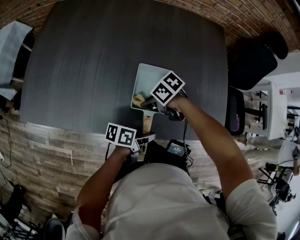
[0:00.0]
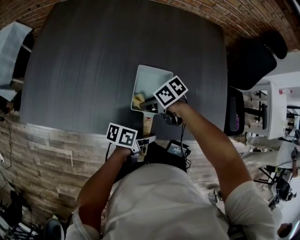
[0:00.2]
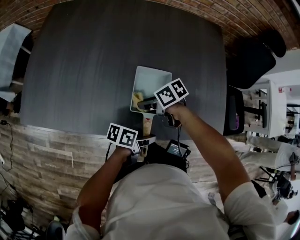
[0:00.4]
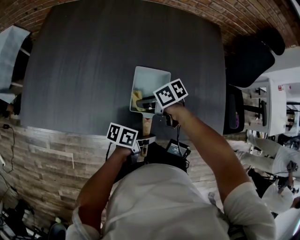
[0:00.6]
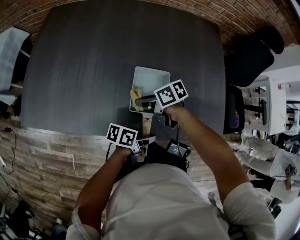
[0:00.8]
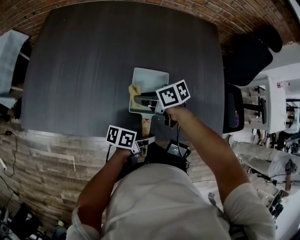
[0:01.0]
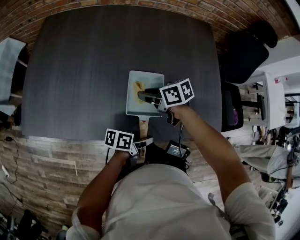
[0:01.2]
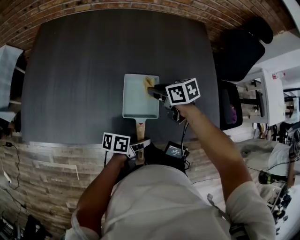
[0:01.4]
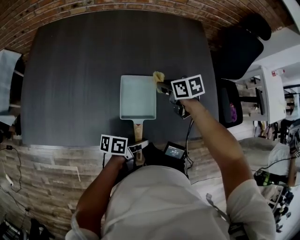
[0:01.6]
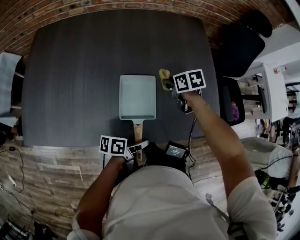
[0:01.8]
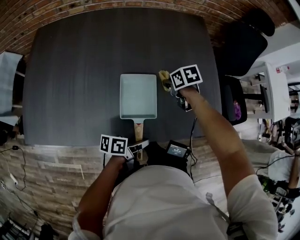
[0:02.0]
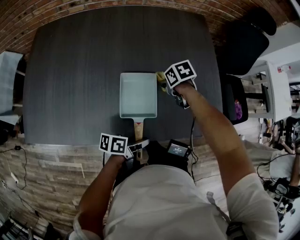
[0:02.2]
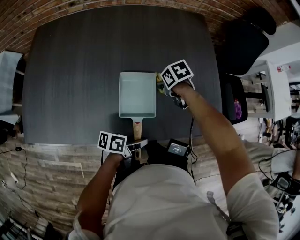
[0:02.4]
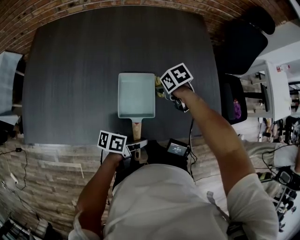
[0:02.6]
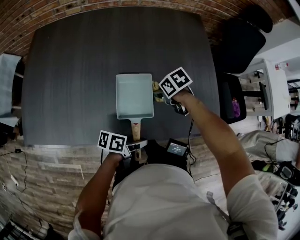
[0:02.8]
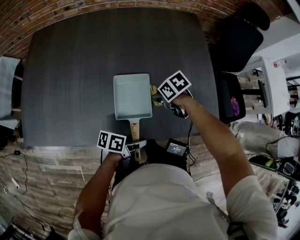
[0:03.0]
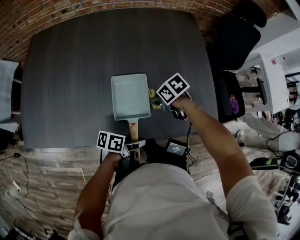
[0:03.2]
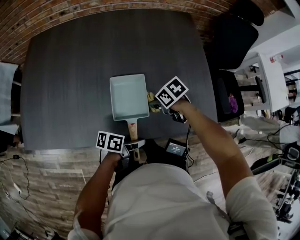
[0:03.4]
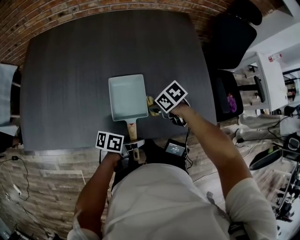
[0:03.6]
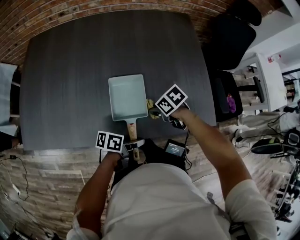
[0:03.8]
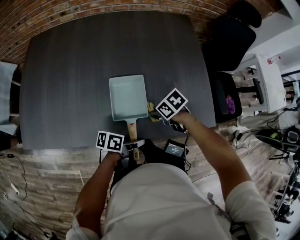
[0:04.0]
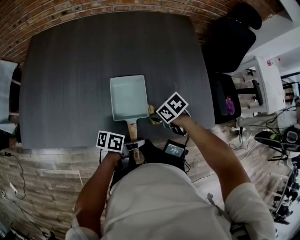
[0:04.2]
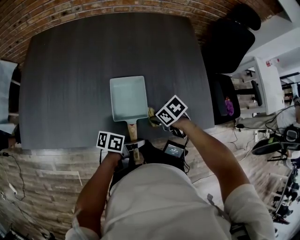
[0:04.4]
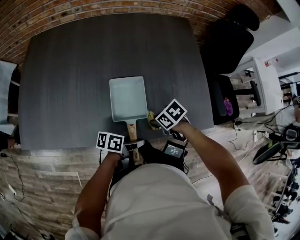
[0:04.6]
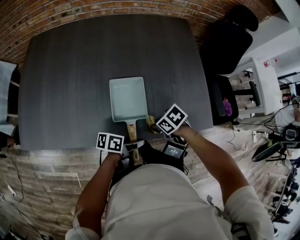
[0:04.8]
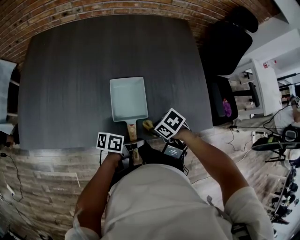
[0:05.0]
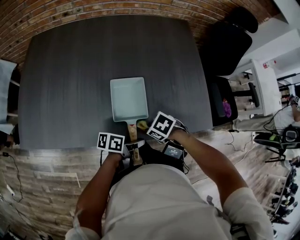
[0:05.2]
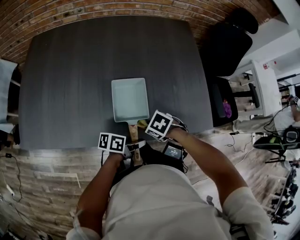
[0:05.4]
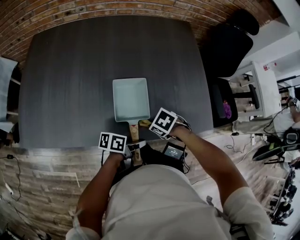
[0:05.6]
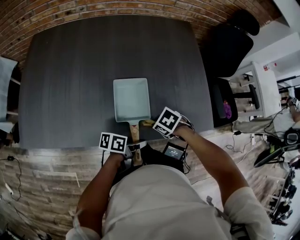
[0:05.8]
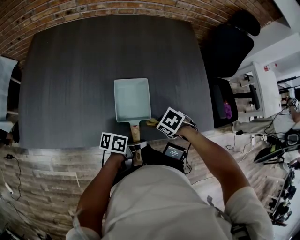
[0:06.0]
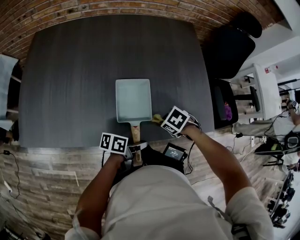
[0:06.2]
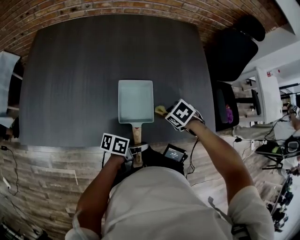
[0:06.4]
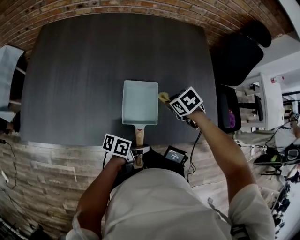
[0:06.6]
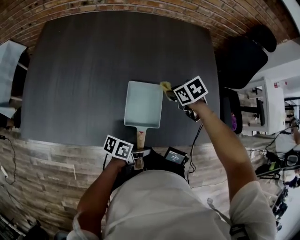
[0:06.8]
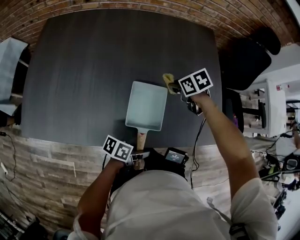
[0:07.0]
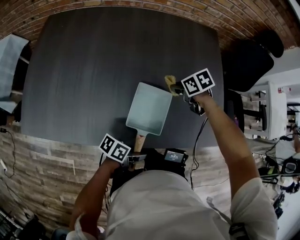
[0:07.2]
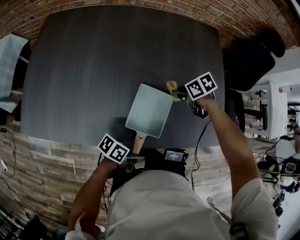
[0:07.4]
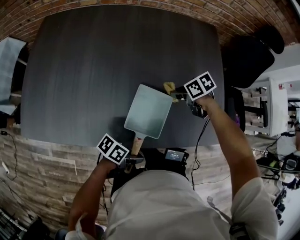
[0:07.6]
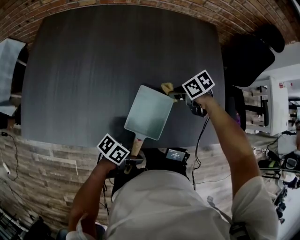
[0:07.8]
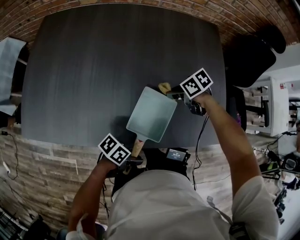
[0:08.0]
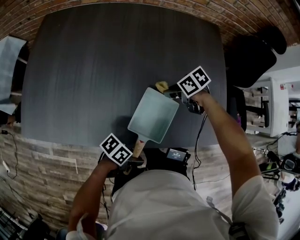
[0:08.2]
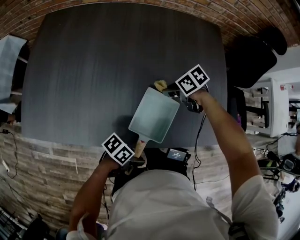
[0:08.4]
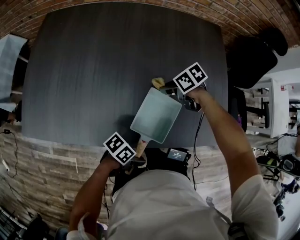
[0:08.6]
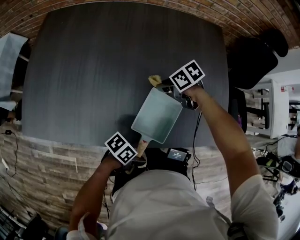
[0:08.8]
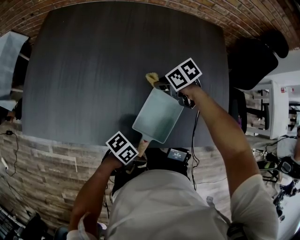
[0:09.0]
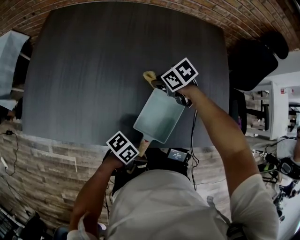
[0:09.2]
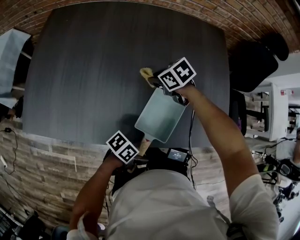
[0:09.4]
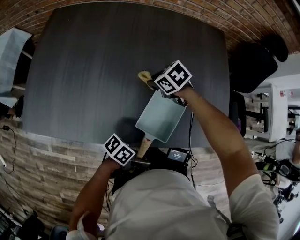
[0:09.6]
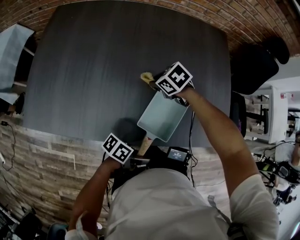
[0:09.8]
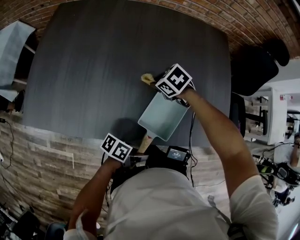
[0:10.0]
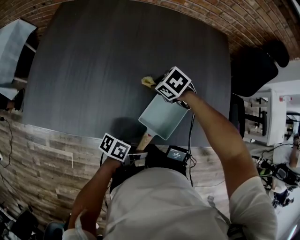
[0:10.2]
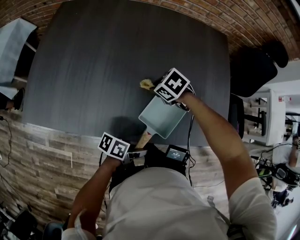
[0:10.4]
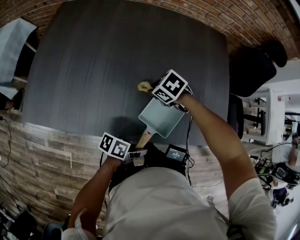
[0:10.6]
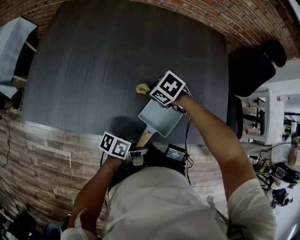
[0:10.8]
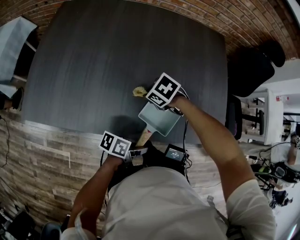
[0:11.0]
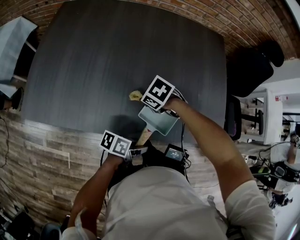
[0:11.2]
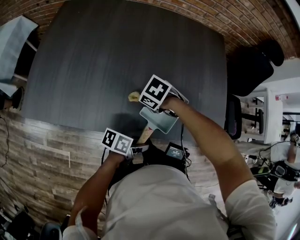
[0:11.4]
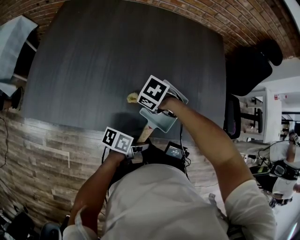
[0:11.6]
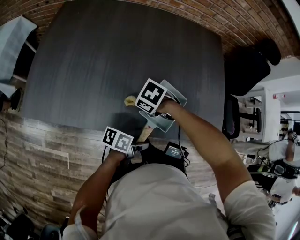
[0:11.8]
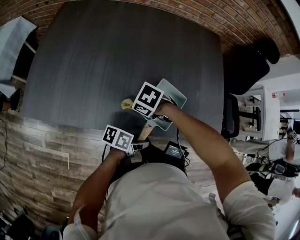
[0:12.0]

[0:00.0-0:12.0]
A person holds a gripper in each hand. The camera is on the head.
0.0 to 1.6 s: The right gripper moves about 20 cm, and rotates about 40 degrees.
1.6 to 3.0 s: The right gripper shifts by approximately 10 cm, and changes its angle by about 20 degrees.
3.0 to 4.4 s: The right gripper shifts by about 10 cm.
4.4 to 6.0 s: The right gripper changes its angle by about 20 degrees.
6.0 to 7.6 s: The right gripper moves roughly 20 cm, and swivels approximately 30 degrees.
7.6 to 9.0 s: The right gripper ends up roughly 10 cm from where it was.
9.0 to 10.4 s: The right gripper moves approximately 5 cm, and turns by about 30 degrees.
10.4 to 12.0 s: The right gripper ends up approximately 15 cm from where it was.

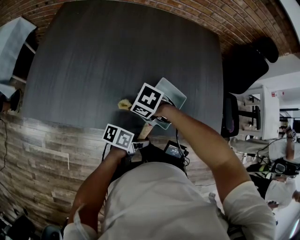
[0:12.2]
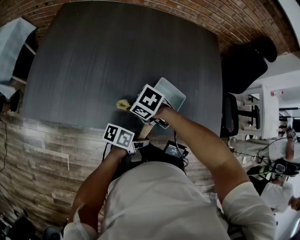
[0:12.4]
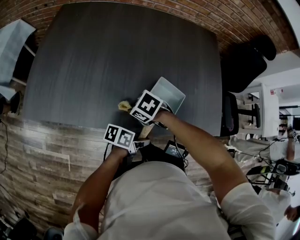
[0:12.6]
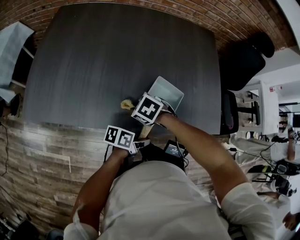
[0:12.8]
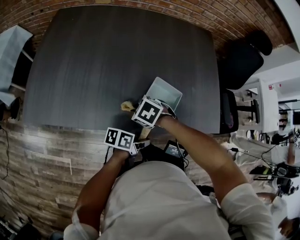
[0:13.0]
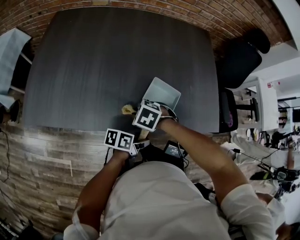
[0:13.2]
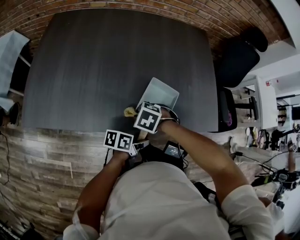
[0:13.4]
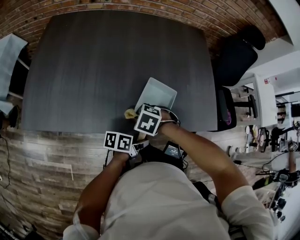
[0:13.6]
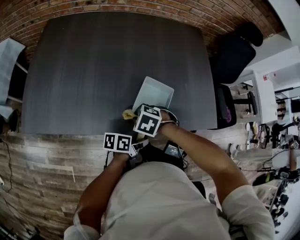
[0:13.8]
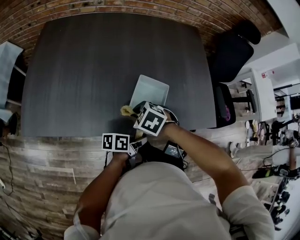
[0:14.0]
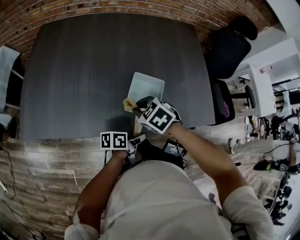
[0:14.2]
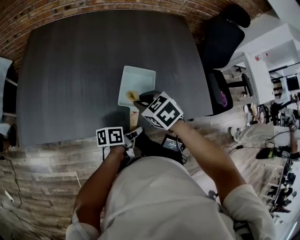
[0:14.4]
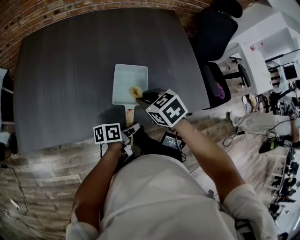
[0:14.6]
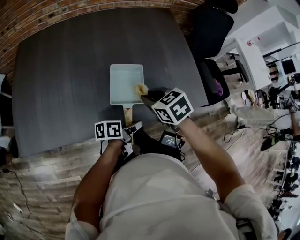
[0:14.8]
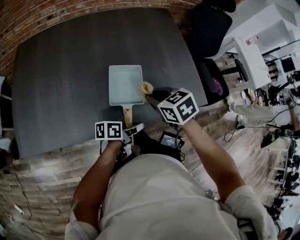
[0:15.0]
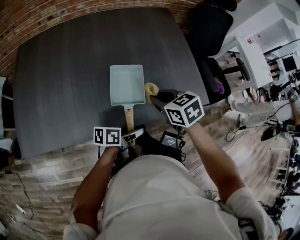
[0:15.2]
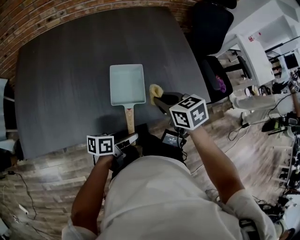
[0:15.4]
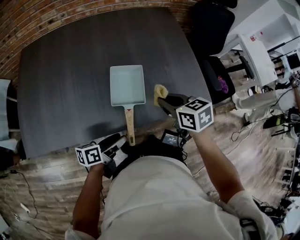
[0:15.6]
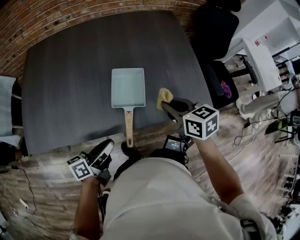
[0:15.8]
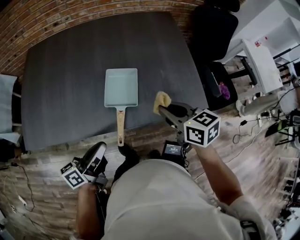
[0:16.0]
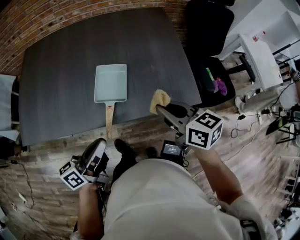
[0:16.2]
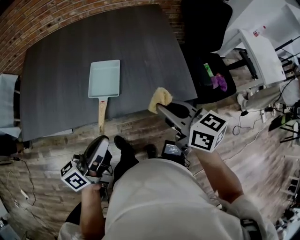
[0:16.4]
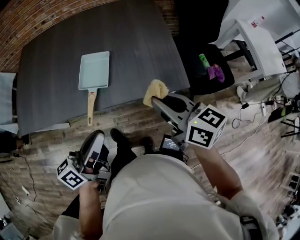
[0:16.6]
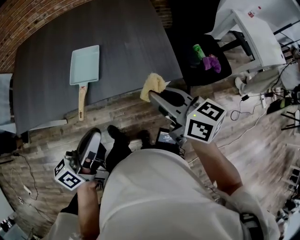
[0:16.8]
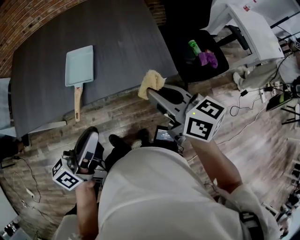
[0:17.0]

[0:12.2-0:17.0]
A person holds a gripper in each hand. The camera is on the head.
12.2 to 13.8 s: The right gripper shifts by approximately 5 cm.
13.8 to 15.4 s: The right gripper moves approximately 20 cm, and rolls clockwise, seen from behind, by about 50 degrees.
15.4 to 17.0 s: The right gripper moves roughly 25 cm, and angles its fingers upward, by roughly 30 degrees.

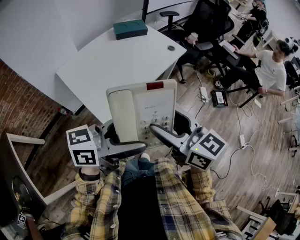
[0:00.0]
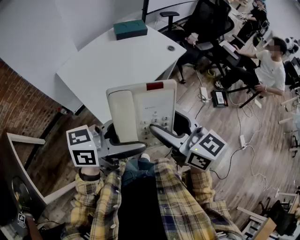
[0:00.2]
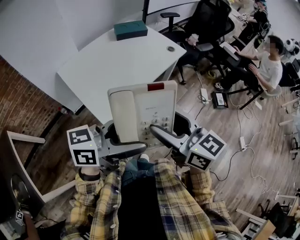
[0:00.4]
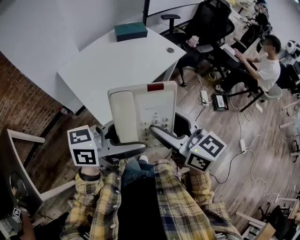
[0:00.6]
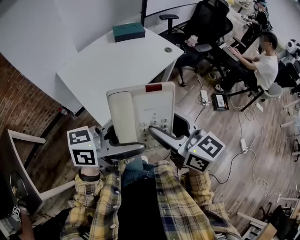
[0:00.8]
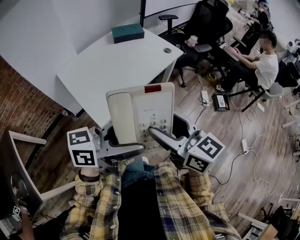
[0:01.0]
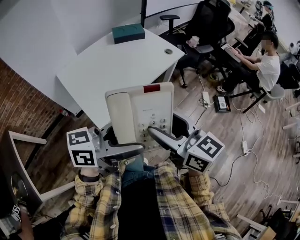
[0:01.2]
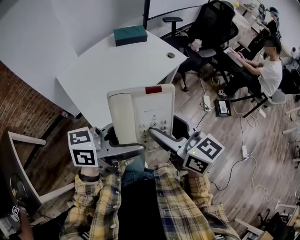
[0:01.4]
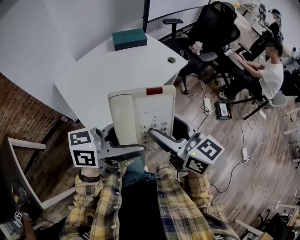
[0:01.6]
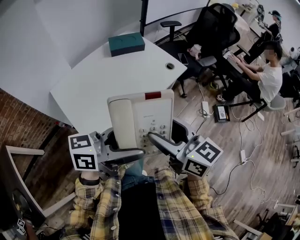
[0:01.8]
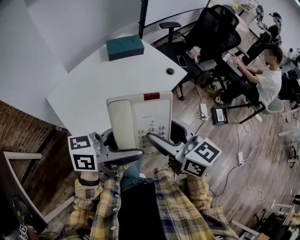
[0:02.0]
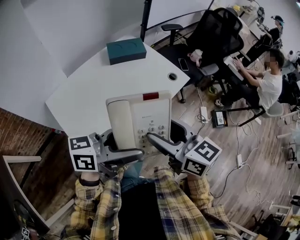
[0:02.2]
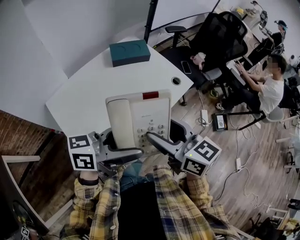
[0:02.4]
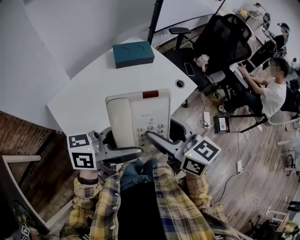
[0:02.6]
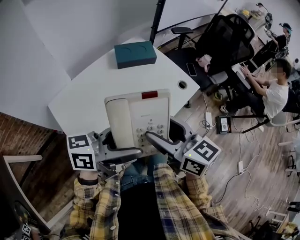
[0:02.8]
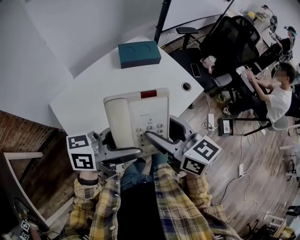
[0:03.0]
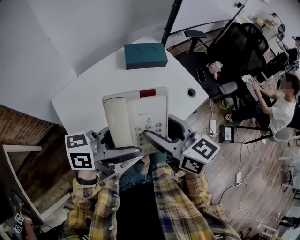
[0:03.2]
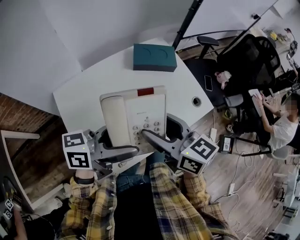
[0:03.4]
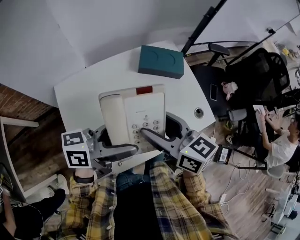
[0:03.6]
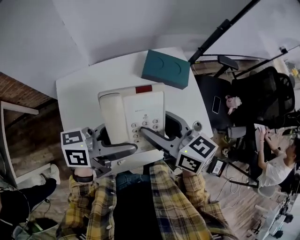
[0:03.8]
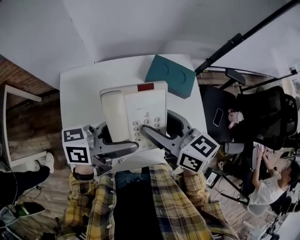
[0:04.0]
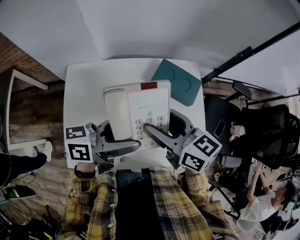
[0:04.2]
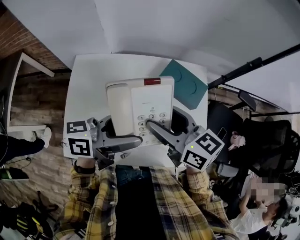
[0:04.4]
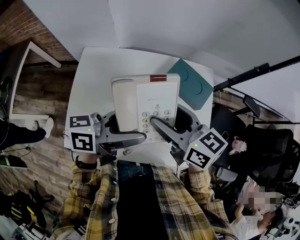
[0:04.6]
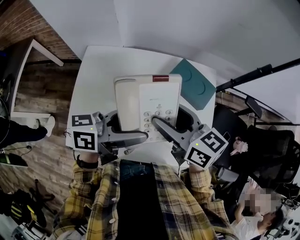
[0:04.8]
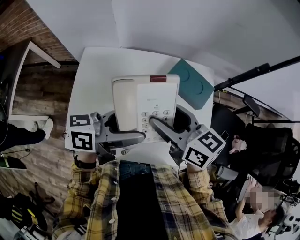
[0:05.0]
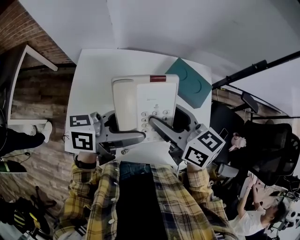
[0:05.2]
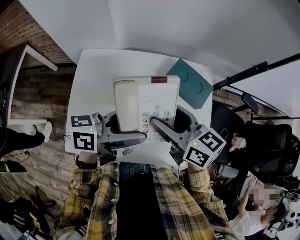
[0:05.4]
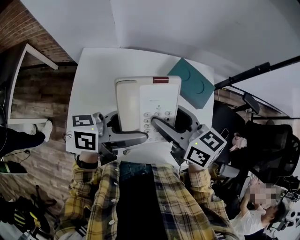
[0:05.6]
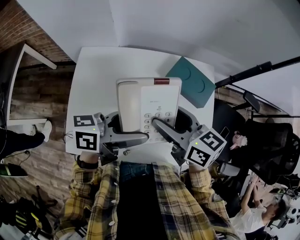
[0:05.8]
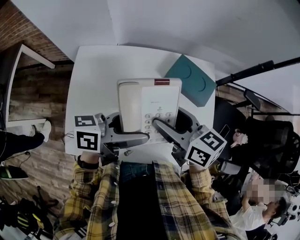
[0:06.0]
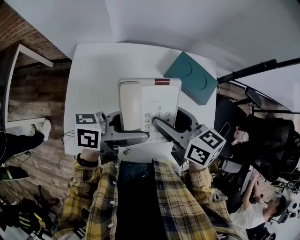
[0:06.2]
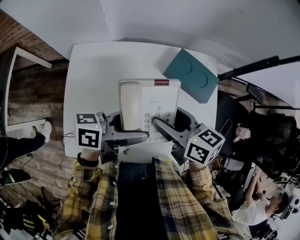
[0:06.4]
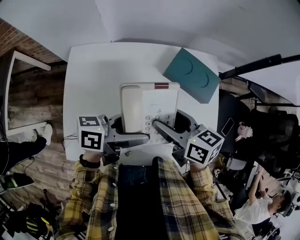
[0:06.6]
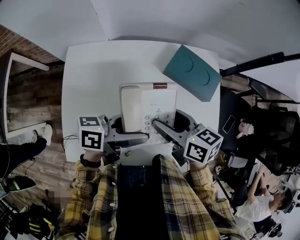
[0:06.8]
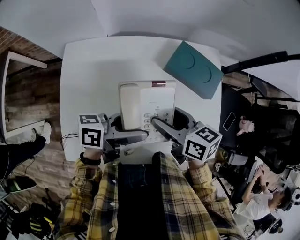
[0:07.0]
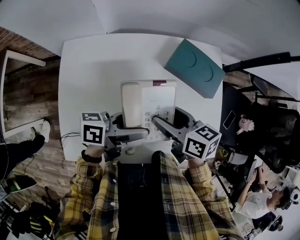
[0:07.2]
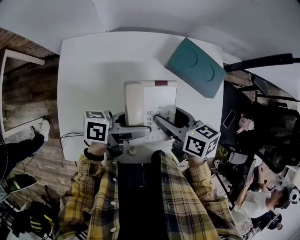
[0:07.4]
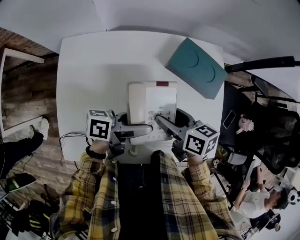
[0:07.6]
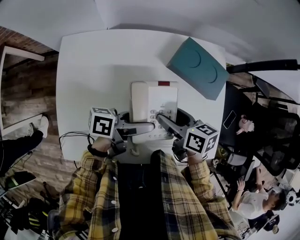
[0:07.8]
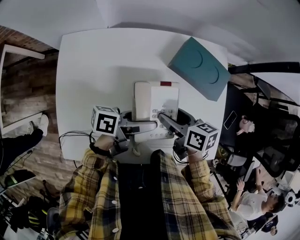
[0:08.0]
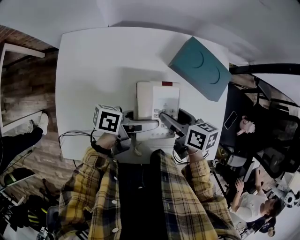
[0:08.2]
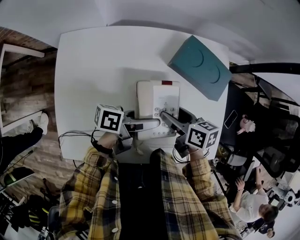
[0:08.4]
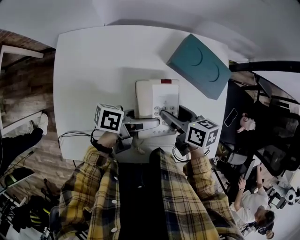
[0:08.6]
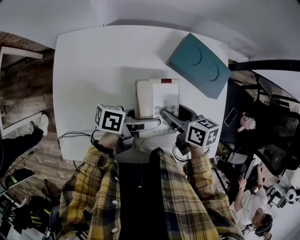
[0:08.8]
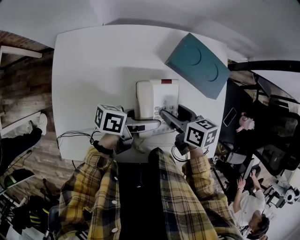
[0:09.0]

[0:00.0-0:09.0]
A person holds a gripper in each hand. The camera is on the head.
0.0 to 1.6 s: The grippers both shift forward by some 10 cm.
1.6 to 3.0 s: Both grippers travel together forward and to the left, about 25 cm.
3.0 to 4.4 s: The left gripper shifts by some 20 cm, and rotates approximately 50 degrees, while the right gripper ends up approximately 25 cm from where it was, and turns by some 40 degrees.
4.4 to 6.0 s: There are only small adjustments of the grippers.
6.0 to 7.6 s: Both grippers travel together downward, roughly 15 cm. The right gripper changes its angle by about 20 degrees. The left gripper swivels some 20 degrees.
7.6 to 9.0 s: The two grippers go roughly 5 cm downward.
